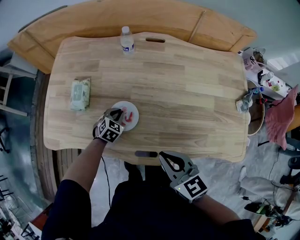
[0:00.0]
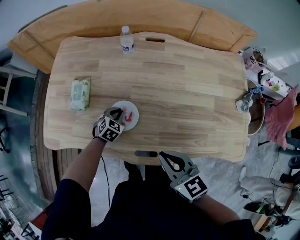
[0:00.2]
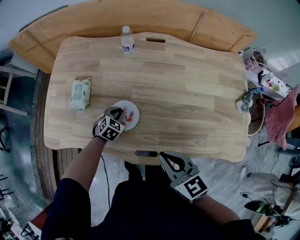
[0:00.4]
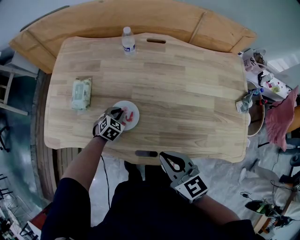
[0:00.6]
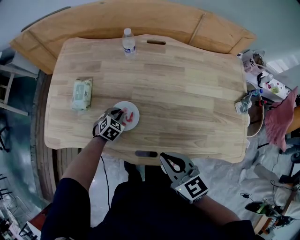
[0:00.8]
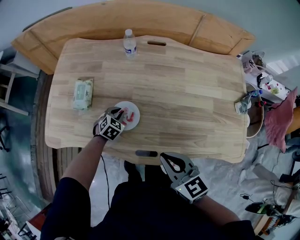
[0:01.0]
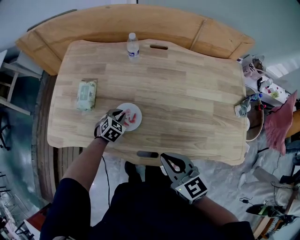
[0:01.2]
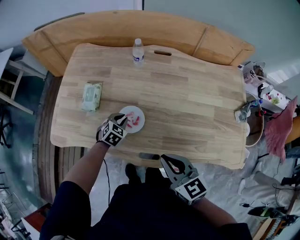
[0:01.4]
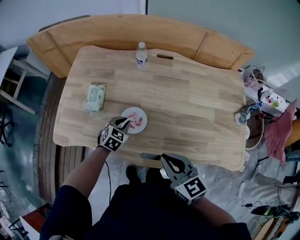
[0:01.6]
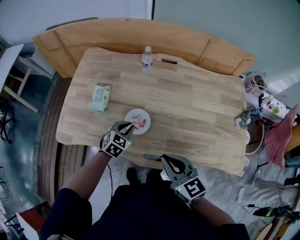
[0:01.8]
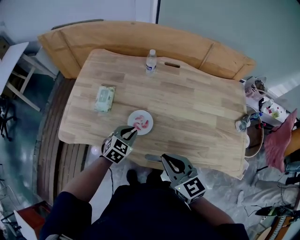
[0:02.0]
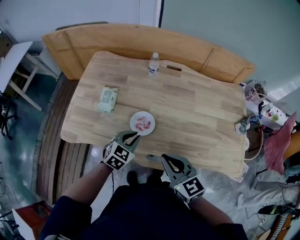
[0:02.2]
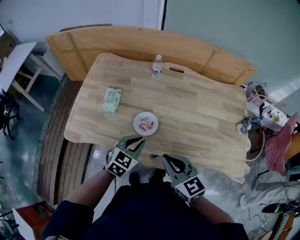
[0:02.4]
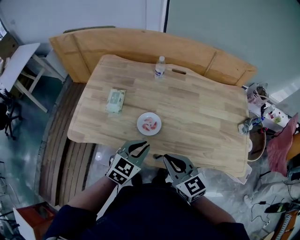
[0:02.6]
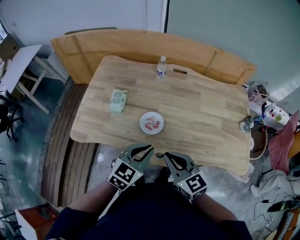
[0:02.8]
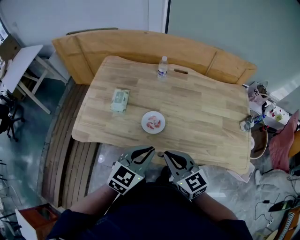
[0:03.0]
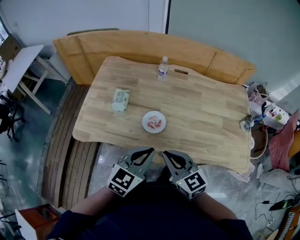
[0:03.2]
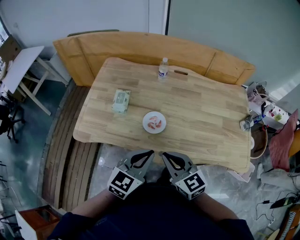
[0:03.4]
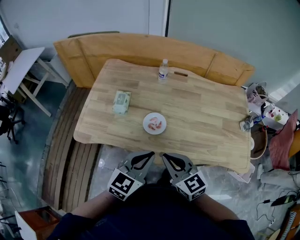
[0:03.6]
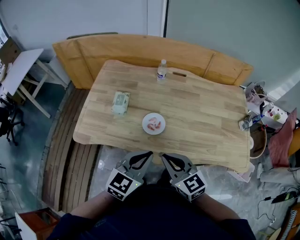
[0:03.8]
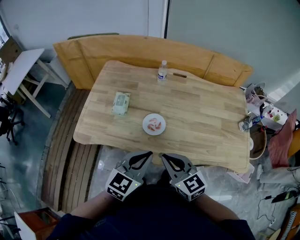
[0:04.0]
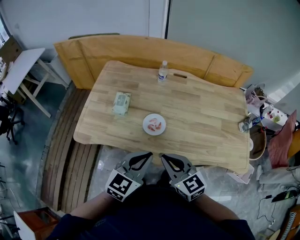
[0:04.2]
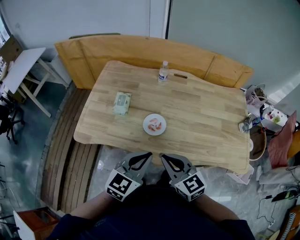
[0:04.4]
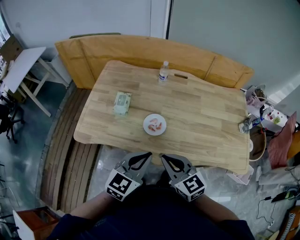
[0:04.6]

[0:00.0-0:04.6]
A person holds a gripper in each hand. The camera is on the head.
0:00.0 to 0:01.6: The left gripper shifts about 10 cm upward. Meanwhile the right gripper ends up roughly 5 cm from where it was.
0:01.6 to 0:03.0: The right gripper travels to the left by approximately 10 cm. Meanwhile the left gripper shifts some 30 cm upward and backward, and swivels about 30 degrees.
0:03.0 to 0:04.6: There are only small adjustments of the grippers.

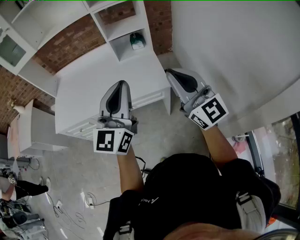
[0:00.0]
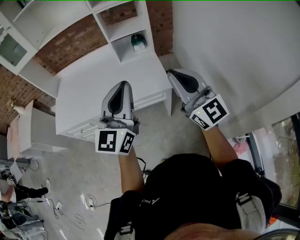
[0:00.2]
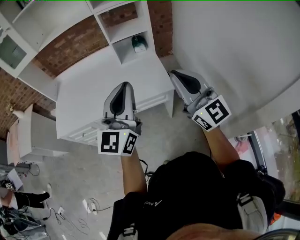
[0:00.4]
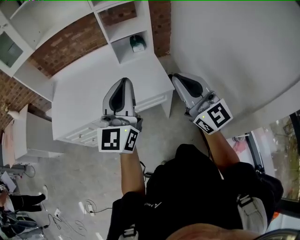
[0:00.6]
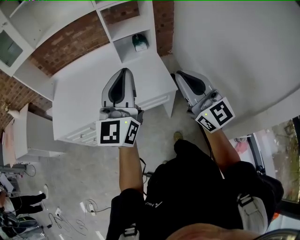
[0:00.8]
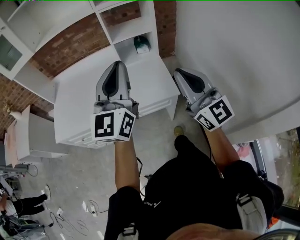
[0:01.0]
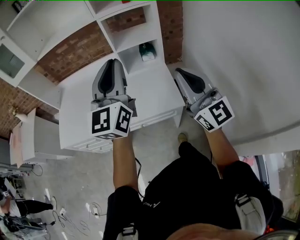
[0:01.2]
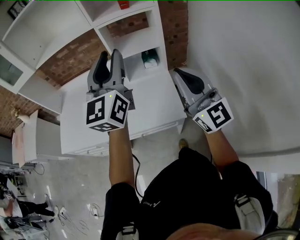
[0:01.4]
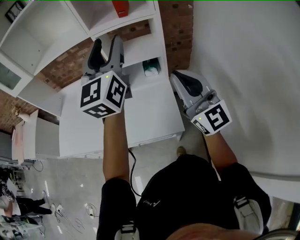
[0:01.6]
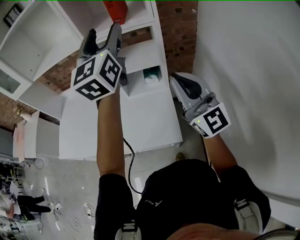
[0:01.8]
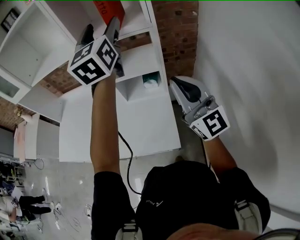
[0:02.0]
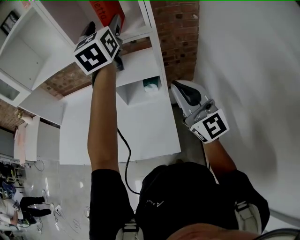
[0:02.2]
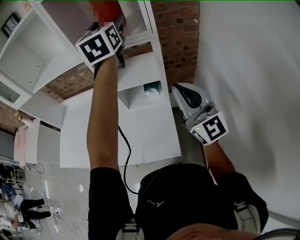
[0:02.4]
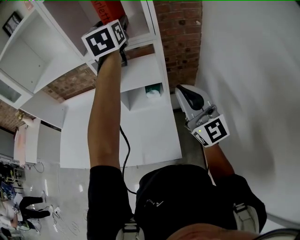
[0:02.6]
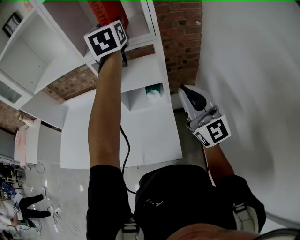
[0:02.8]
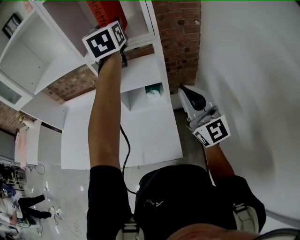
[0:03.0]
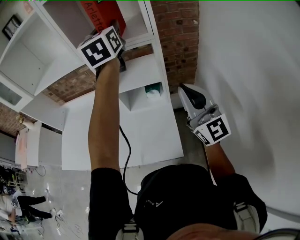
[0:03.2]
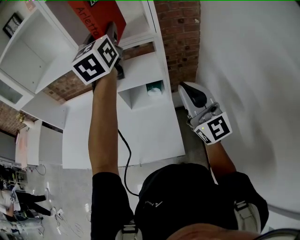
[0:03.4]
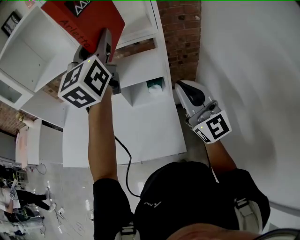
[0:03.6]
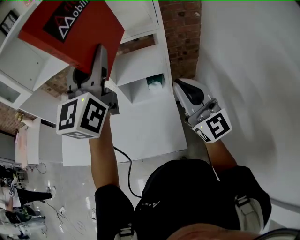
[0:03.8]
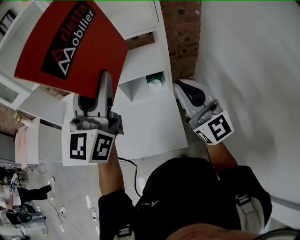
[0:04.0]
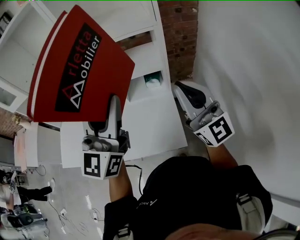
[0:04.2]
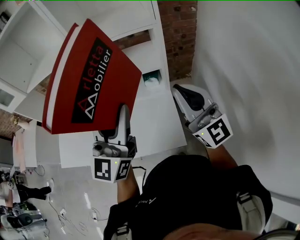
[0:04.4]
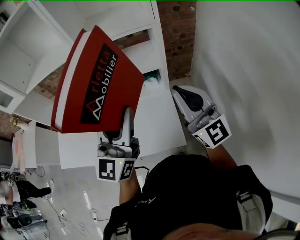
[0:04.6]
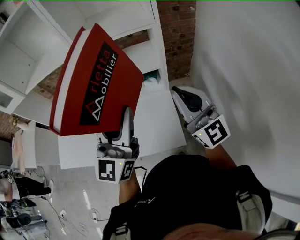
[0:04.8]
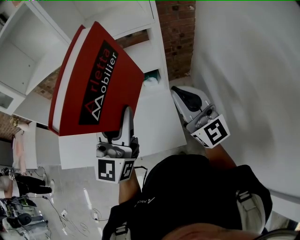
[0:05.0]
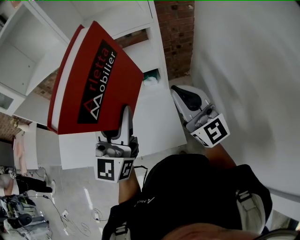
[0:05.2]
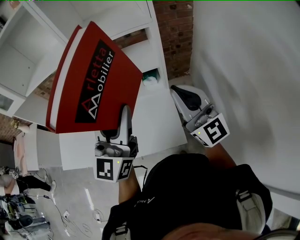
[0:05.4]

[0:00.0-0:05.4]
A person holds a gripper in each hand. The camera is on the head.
0:00.0 to 0:01.4: The grippers both shift forward by roughly 25 cm. The left gripper opens its fingers.
0:01.4 to 0:02.8: The right gripper shifts some 20 cm forward and to the right; the left gripper travels forward and to the right by about 35 cm, swivels approximately 20 degrees, and opens and closes again.
0:02.8 to 0:04.0: The left gripper shifts some 25 cm backward, and changes its angle by roughly 30 degrees; the right gripper is displaced to the left by some 5 cm.
0:04.0 to 0:05.4: The left gripper moves downward, about 5 cm.

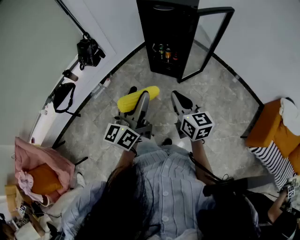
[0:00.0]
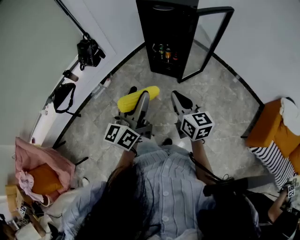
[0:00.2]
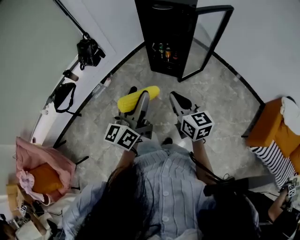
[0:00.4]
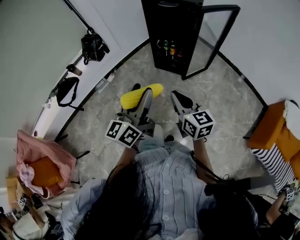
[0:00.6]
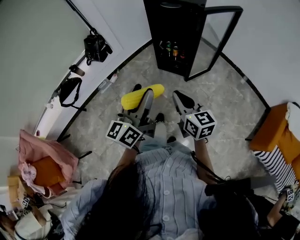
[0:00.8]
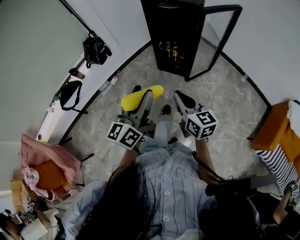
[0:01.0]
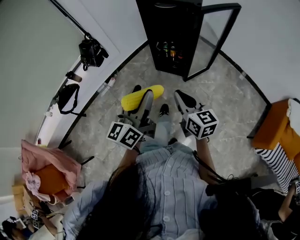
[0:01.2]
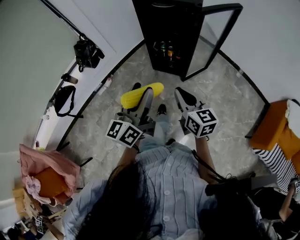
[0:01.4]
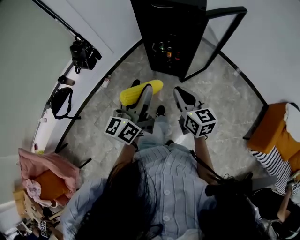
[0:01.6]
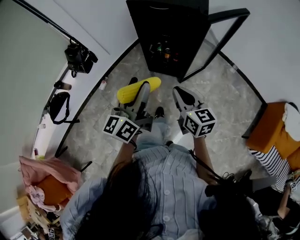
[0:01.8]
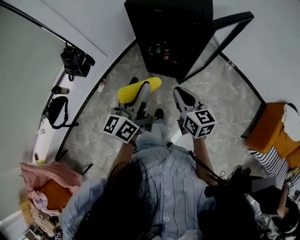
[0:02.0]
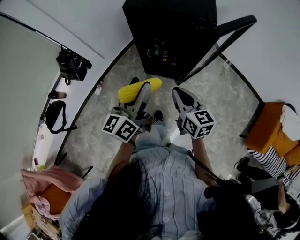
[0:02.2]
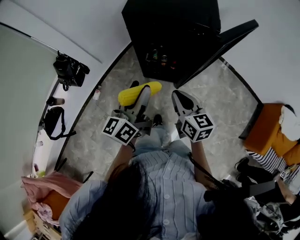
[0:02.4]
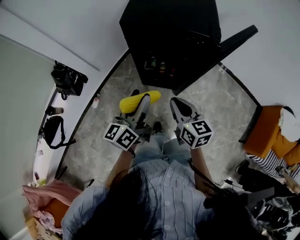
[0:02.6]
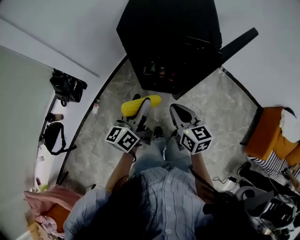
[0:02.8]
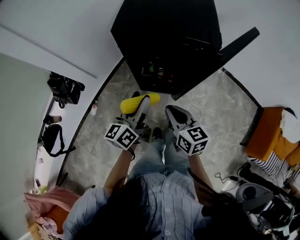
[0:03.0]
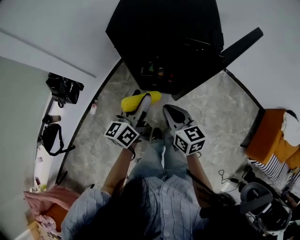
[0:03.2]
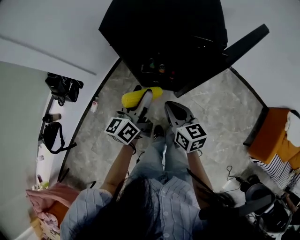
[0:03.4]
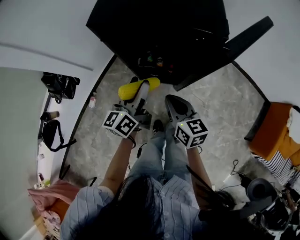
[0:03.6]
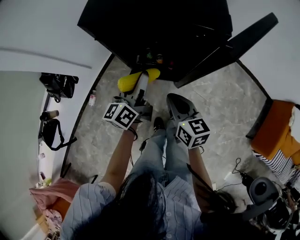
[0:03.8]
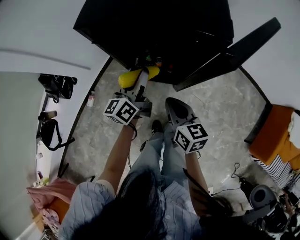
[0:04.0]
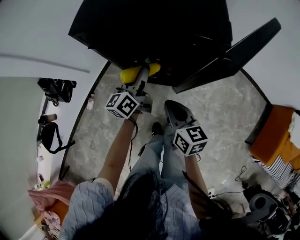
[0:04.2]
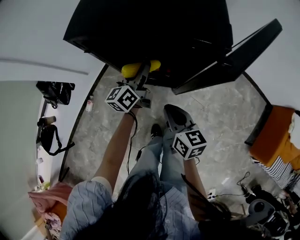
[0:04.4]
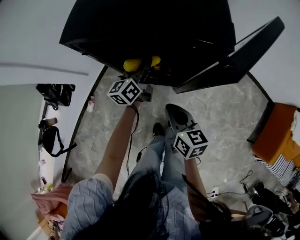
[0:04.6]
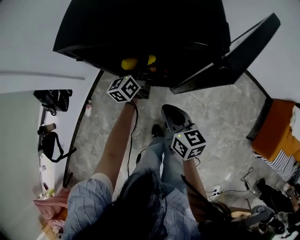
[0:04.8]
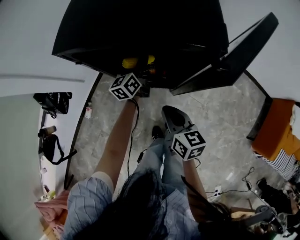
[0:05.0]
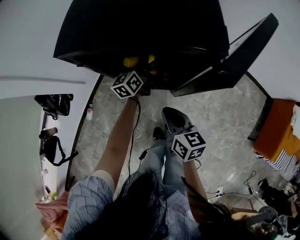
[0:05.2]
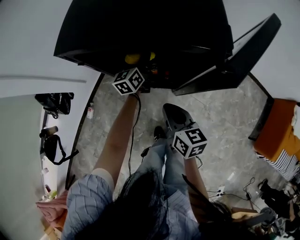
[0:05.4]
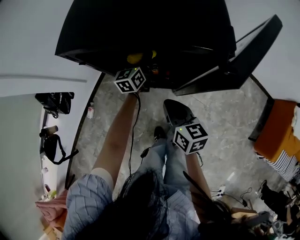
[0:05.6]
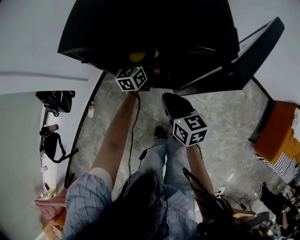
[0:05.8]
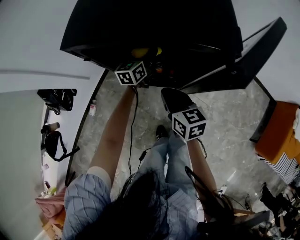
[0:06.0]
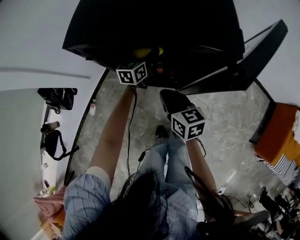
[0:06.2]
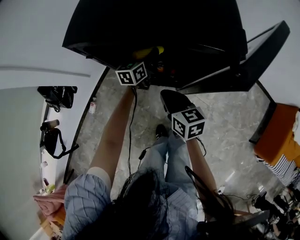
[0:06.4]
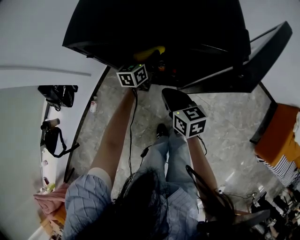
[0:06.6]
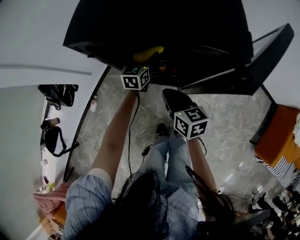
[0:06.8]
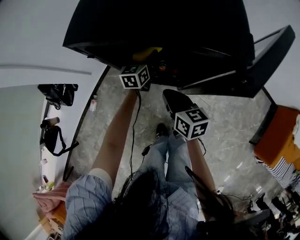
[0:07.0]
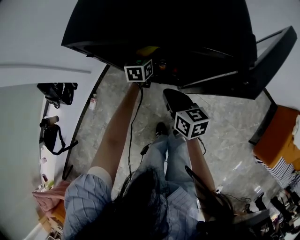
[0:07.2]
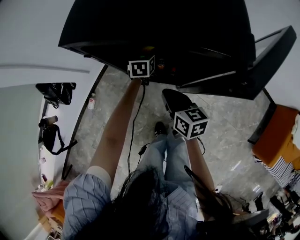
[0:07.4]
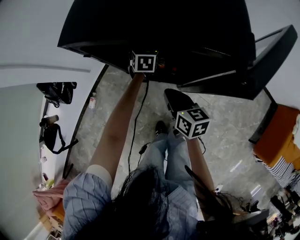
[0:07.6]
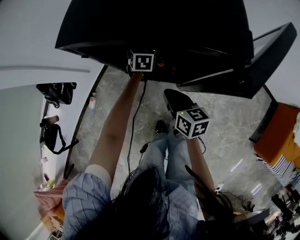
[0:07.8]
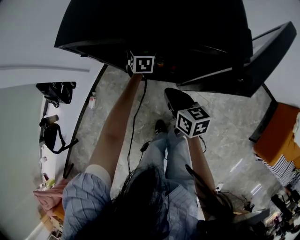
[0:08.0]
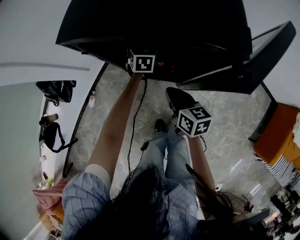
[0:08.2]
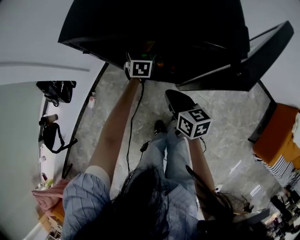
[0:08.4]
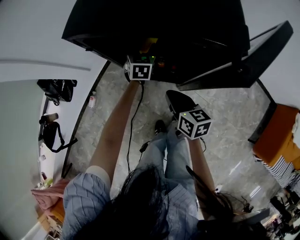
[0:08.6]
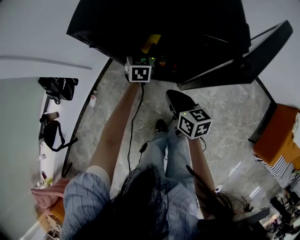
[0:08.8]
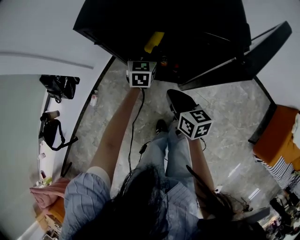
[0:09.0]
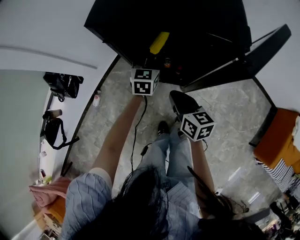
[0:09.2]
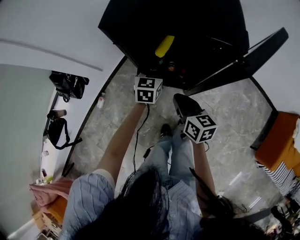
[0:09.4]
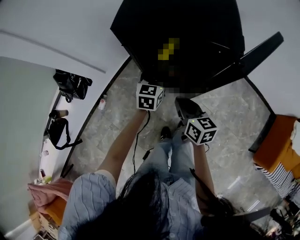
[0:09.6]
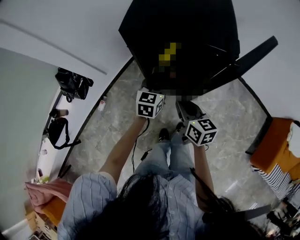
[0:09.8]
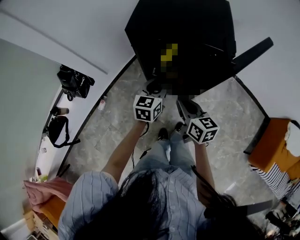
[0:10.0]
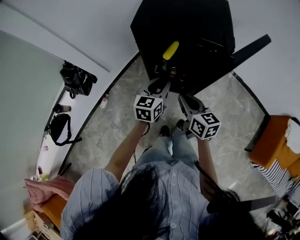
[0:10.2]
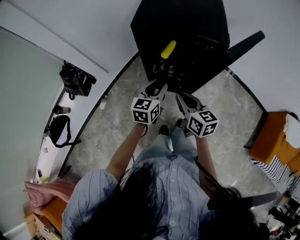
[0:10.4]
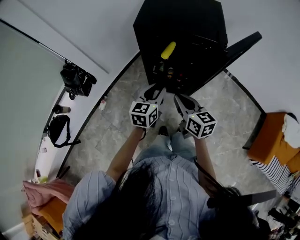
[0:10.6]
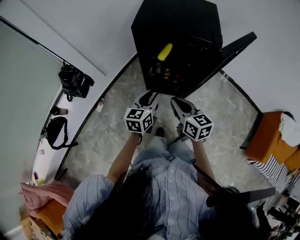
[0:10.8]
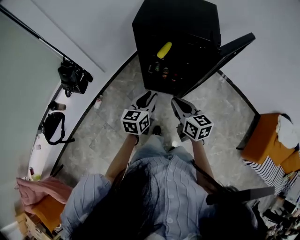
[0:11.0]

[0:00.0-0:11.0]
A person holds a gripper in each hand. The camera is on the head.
0:00.0 to 0:01.6: Both grippers travel together forward, approximately 15 cm.
0:01.6 to 0:03.2: The right gripper moves forward, some 25 cm. The left gripper heads forward and downward, covering about 35 cm.
0:03.2 to 0:04.8: The right gripper travels downward and to the right by about 10 cm. Meanwhile the left gripper moves forward and downward, about 25 cm.
0:04.8 to 0:06.2: The right gripper heads forward, covering approximately 5 cm, while the left gripper shifts by about 5 cm, and rotates roughly 20 degrees.
0:06.2 to 0:07.8: The left gripper ends up approximately 5 cm from where it was, and swivels some 30 degrees.
0:07.8 to 0:09.4: The right gripper is displaced upward and backward by approximately 10 cm, while the left gripper is displaced backward and upward by some 15 cm, and closes its fingers.
0:09.4 to 0:11.0: The right gripper moves backward and upward, roughly 15 cm, while the left gripper travels backward and upward by some 25 cm.

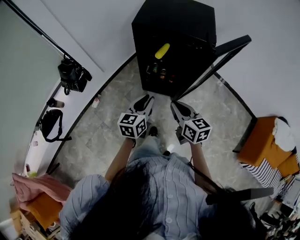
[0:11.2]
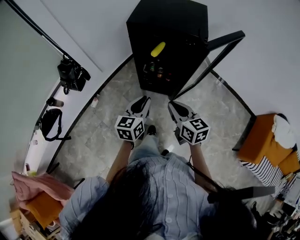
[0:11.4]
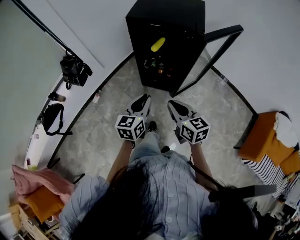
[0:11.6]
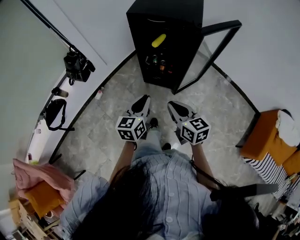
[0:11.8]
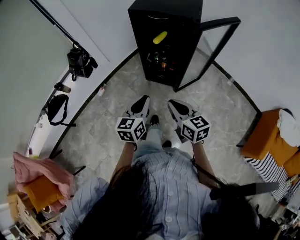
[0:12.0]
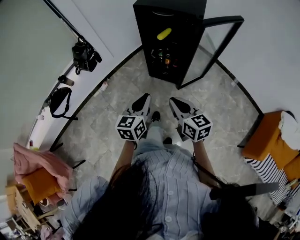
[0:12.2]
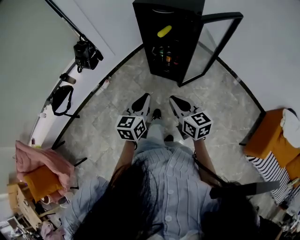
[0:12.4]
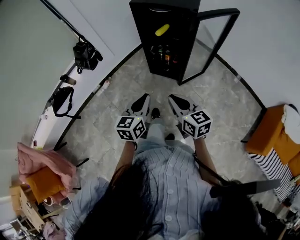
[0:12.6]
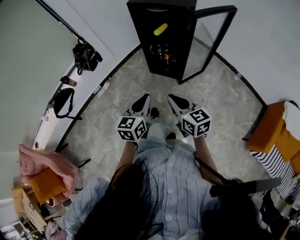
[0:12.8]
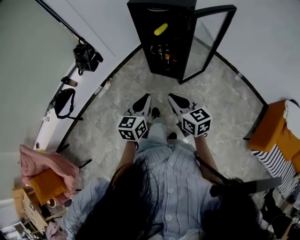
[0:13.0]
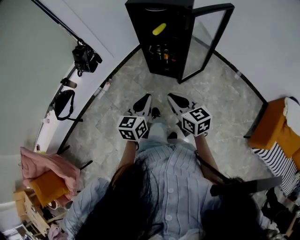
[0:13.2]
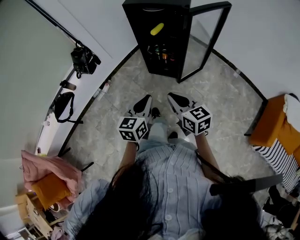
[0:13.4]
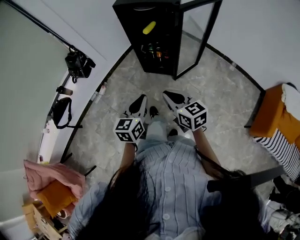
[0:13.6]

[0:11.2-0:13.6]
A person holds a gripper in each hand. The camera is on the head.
0:11.2 to 0:12.4: Both grippers travel together backward, roughly 20 cm.
0:12.4 to 0:13.6: There are only small adjustments of the grippers.
